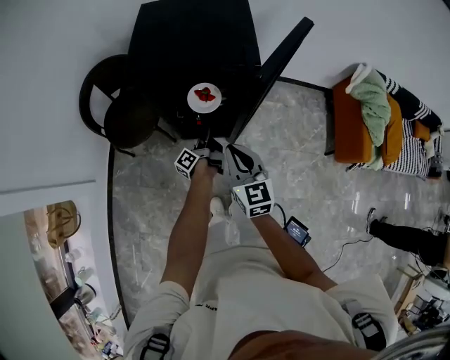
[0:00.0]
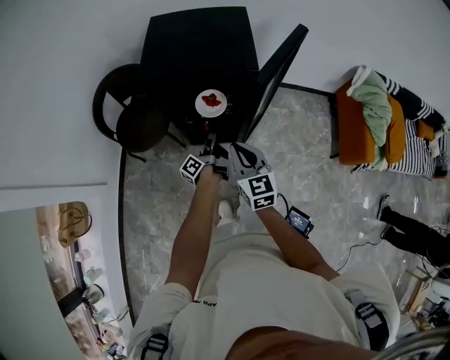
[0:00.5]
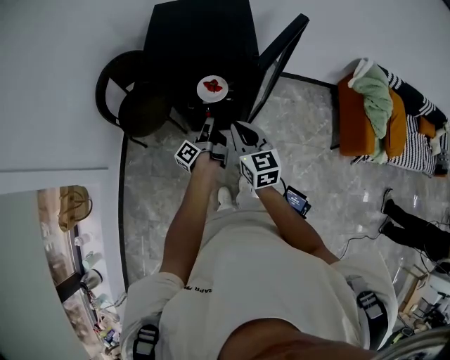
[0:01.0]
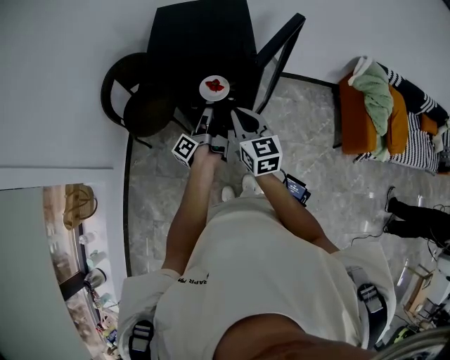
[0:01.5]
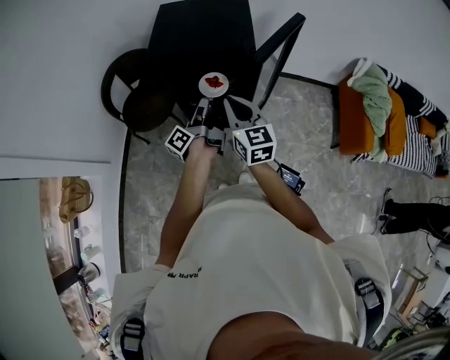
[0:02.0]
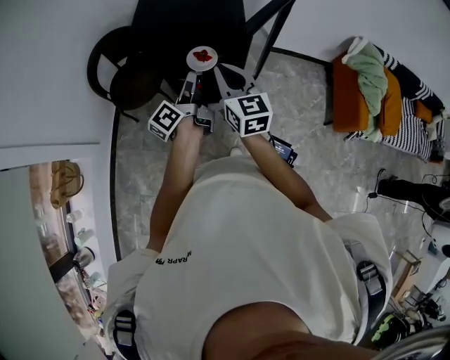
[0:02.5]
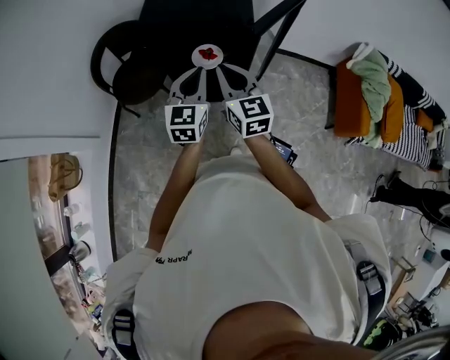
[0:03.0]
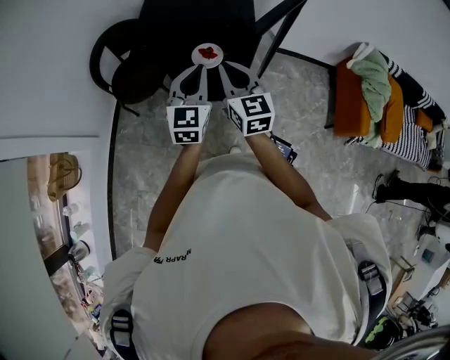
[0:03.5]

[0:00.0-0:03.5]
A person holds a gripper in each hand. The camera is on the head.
0:00.0 to 0:02.0: The right gripper travels upward by some 10 cm.

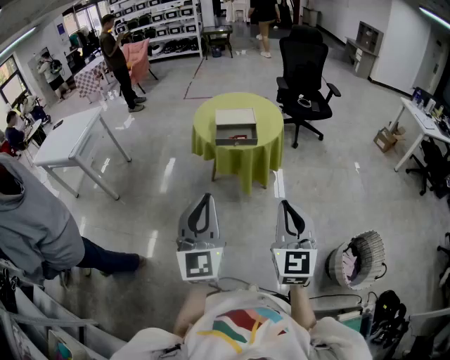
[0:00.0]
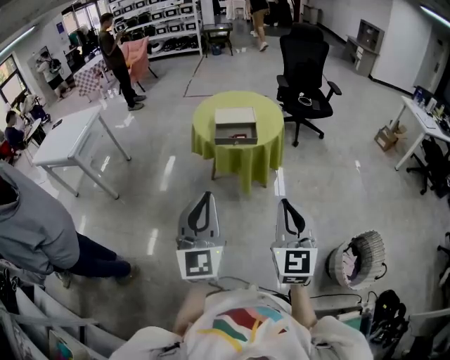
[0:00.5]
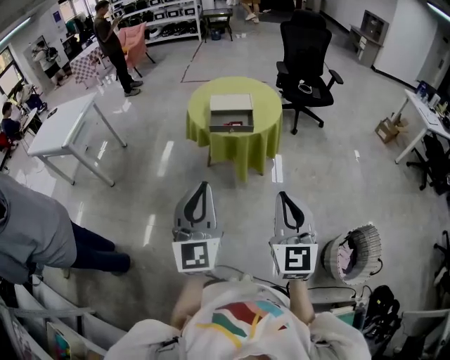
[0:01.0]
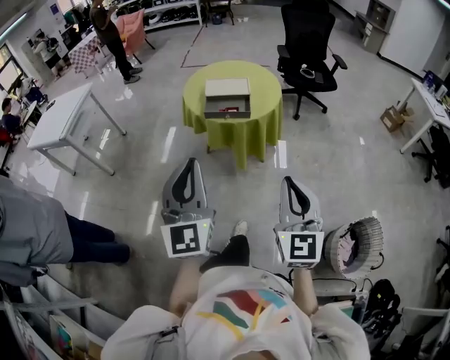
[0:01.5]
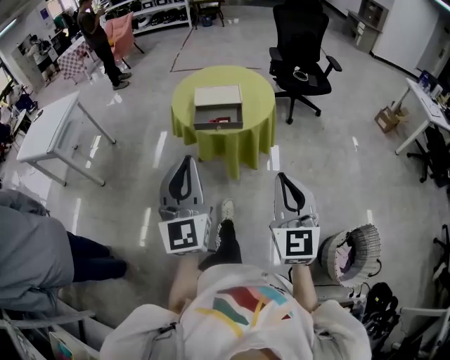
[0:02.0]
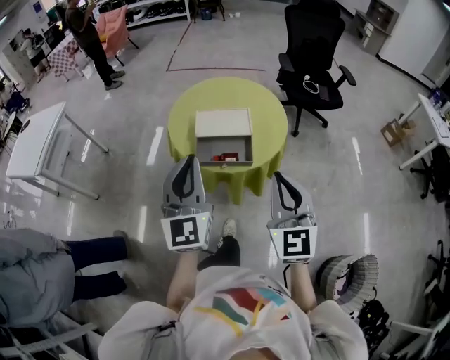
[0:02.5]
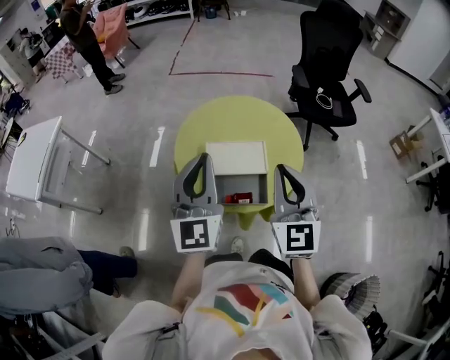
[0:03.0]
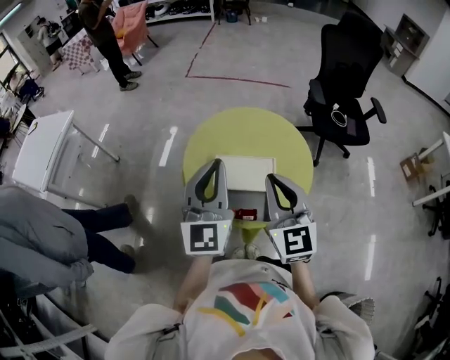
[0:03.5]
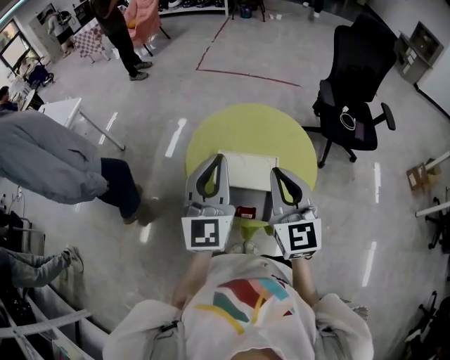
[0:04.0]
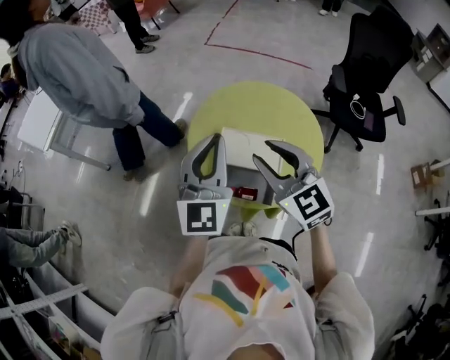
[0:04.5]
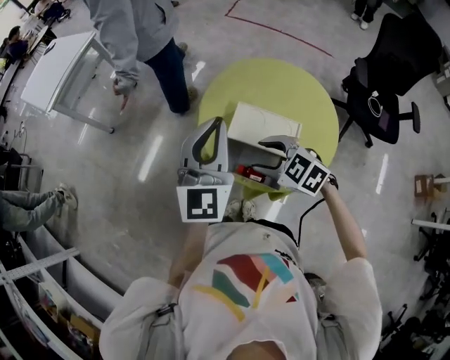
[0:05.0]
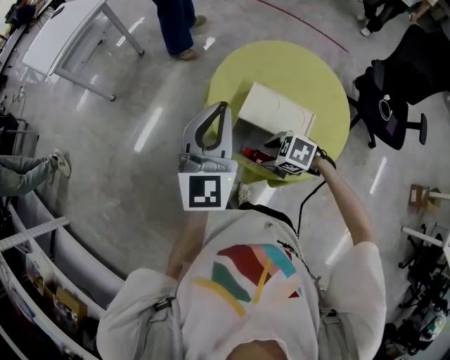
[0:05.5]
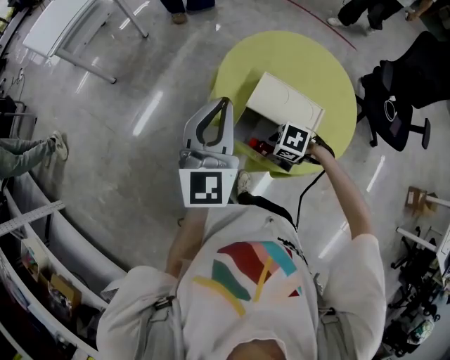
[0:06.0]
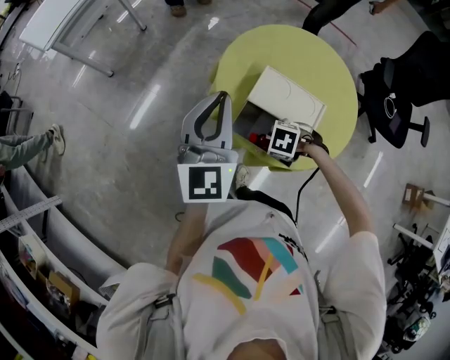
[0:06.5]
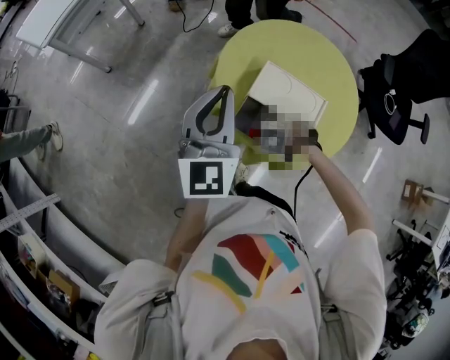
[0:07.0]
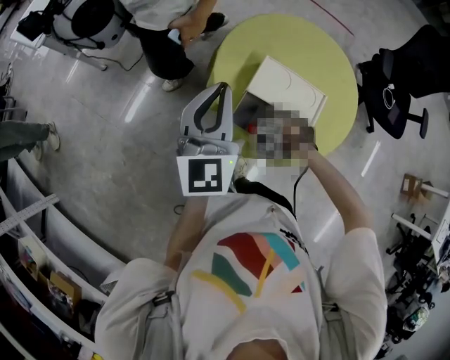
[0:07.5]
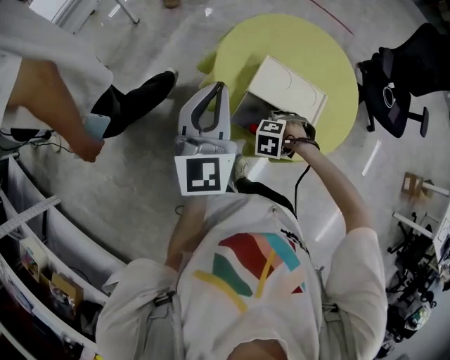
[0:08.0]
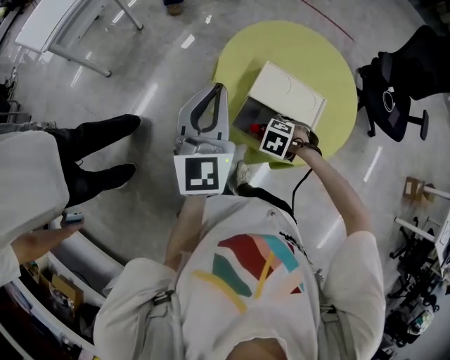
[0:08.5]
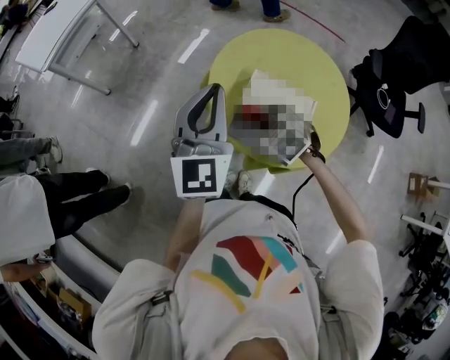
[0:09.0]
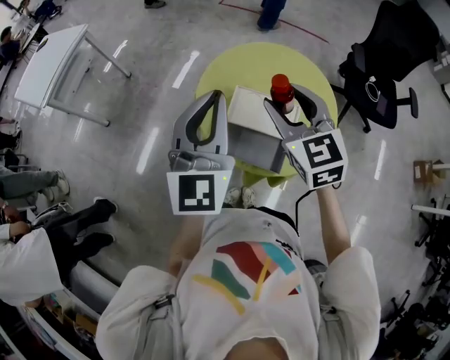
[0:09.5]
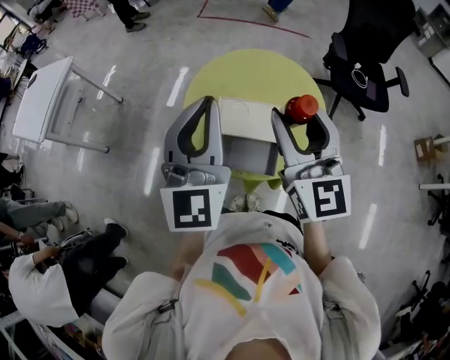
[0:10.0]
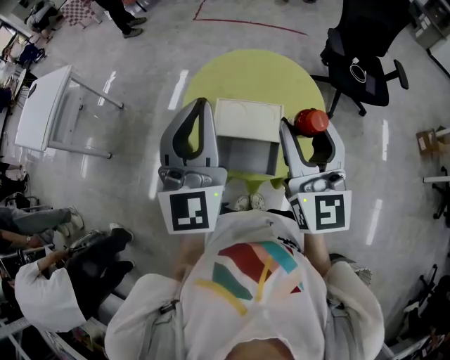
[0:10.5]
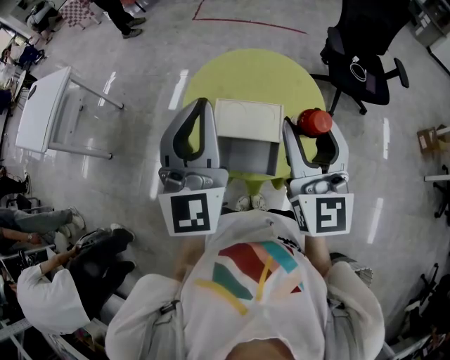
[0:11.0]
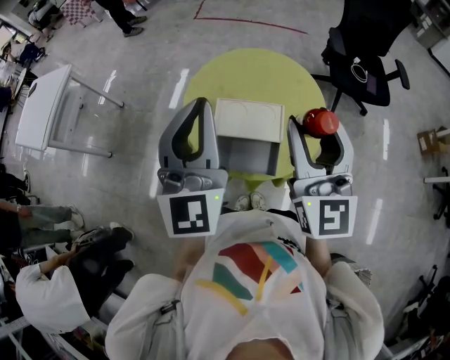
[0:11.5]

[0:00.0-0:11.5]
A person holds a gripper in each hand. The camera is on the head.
0:00.0 to 0:02.0: The right gripper shifts some 15 cm forward and to the right, while the left gripper shifts roughly 15 cm forward.
0:02.0 to 0:04.0: The pair of grippers is taken forward, roughly 50 cm.
0:04.0 to 0:06.0: The right gripper heads downward, covering about 35 cm, angles its fingers downward, by about 60 degrees, and opens up, while the left gripper ends up roughly 15 cm from where it was.
0:06.0 to 0:07.5: The right gripper turns by some 30 degrees.
0:07.5 to 0:09.5: The right gripper goes some 35 cm upward, and tips its fingers upward by approximately 70 degrees, while the left gripper shifts roughly 10 cm upward.
0:09.5 to 0:11.5: The right gripper shifts some 15 cm to the right, upward and backward, and turns by approximately 40 degrees; the left gripper ends up some 5 cm from where it was.

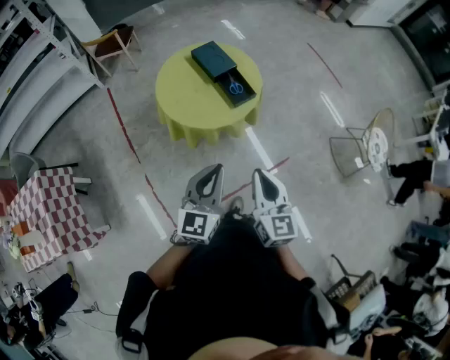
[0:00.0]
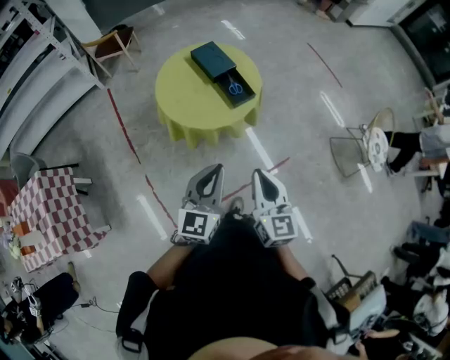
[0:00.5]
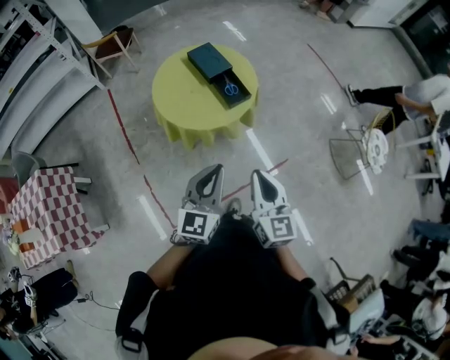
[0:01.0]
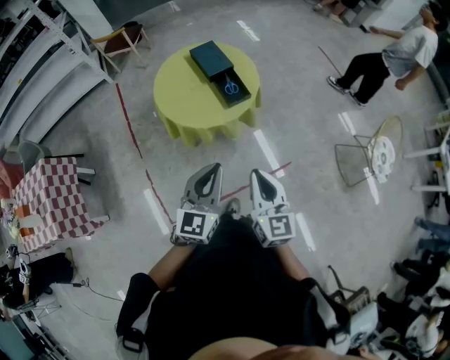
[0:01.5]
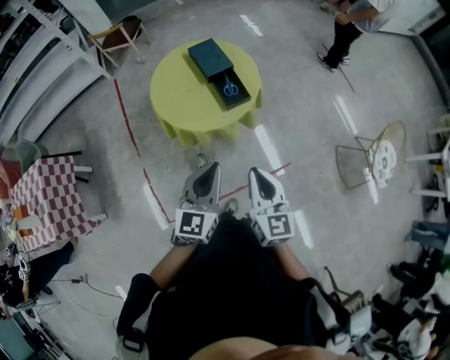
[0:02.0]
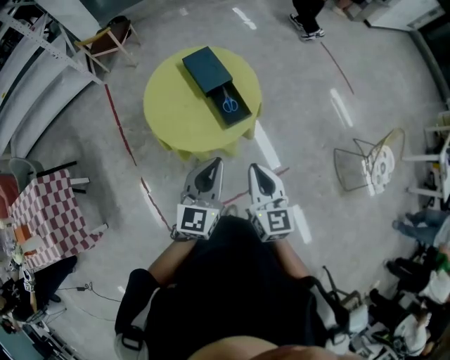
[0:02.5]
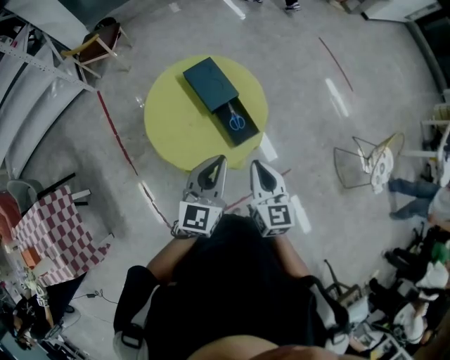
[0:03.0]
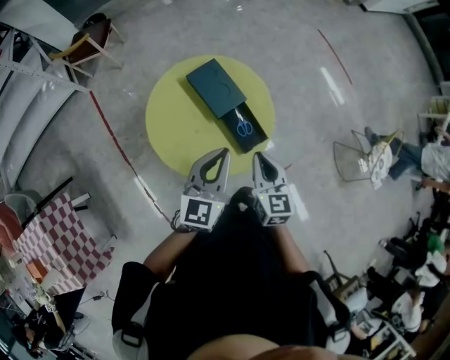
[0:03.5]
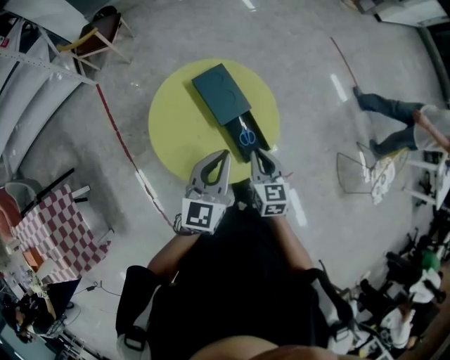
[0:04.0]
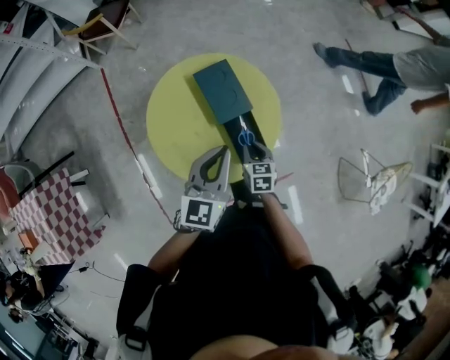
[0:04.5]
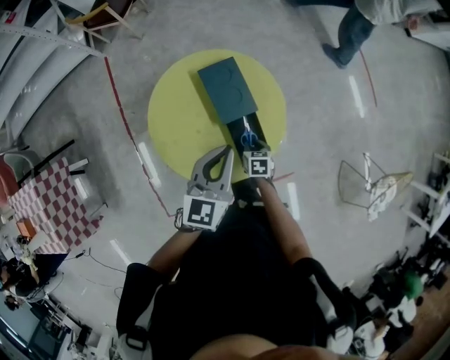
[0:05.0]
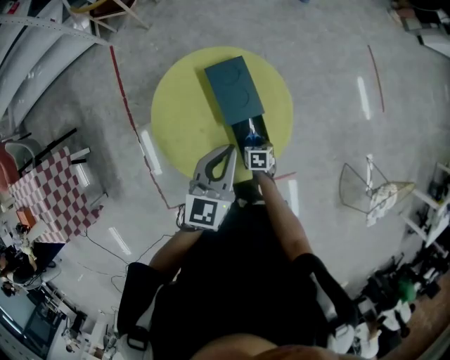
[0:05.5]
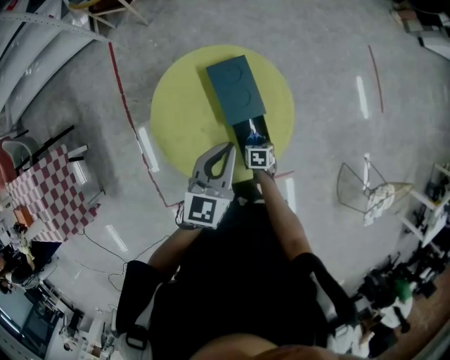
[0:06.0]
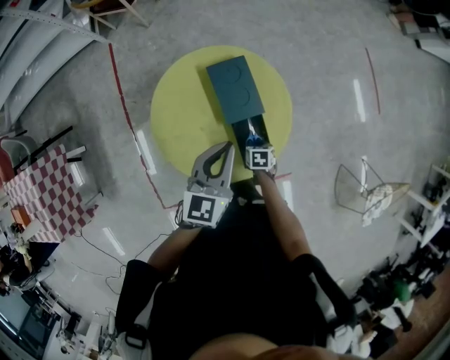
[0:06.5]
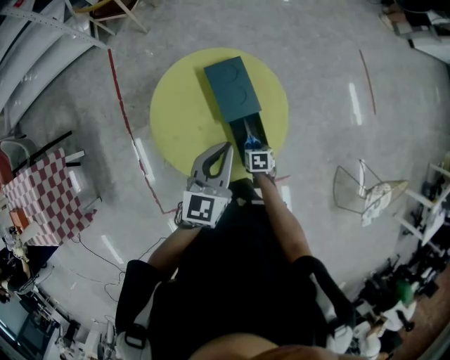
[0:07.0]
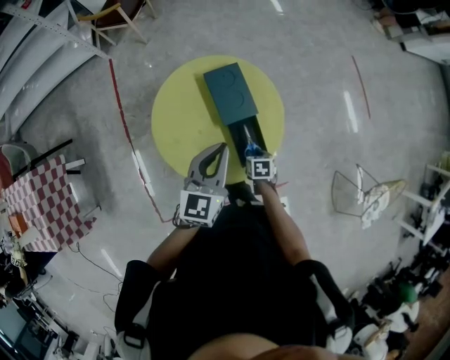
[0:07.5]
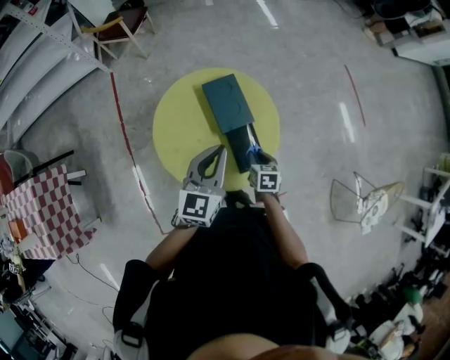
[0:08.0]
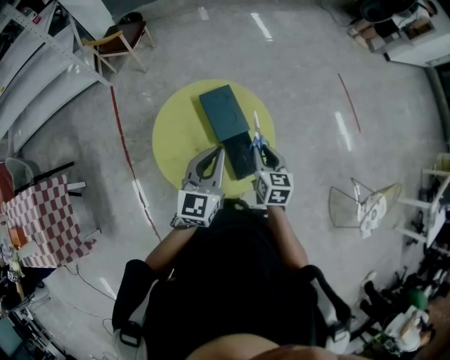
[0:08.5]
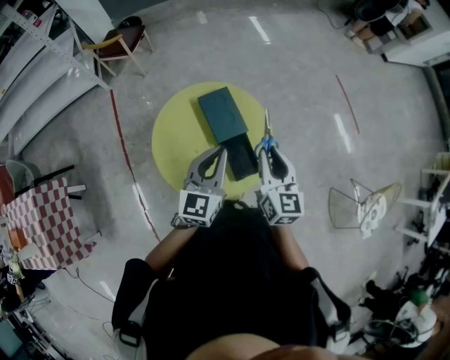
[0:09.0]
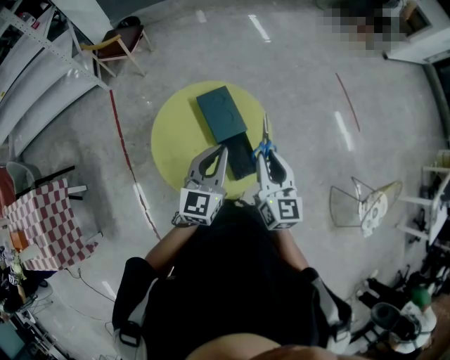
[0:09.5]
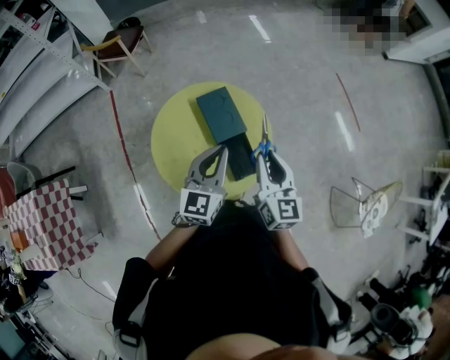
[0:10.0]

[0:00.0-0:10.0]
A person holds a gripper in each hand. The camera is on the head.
0:00.0 to 0:02.0: Both grippers travel together to the right and forward, some 10 cm.
0:02.0 to 0:04.0: Both grippers travel together forward, about 35 cm. The right gripper changes its angle by approximately 20 degrees.
0:04.0 to 0:06.0: The right gripper is displaced downward by approximately 30 cm, tilts its fingers approximately 40 degrees downward, and opens its fingers, while the left gripper changes place by about 10 cm.
0:06.0 to 0:08.0: The right gripper shifts roughly 15 cm upward; the left gripper changes place by roughly 5 cm.
0:08.0 to 0:10.0: The right gripper goes approximately 25 cm upward, and tips its fingers upward by roughly 50 degrees.

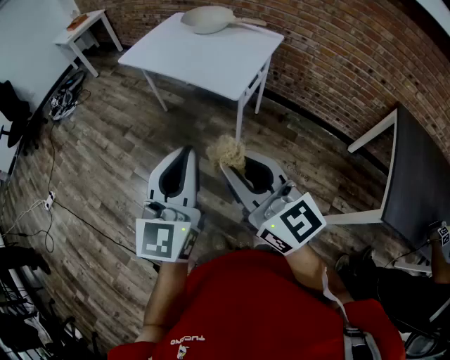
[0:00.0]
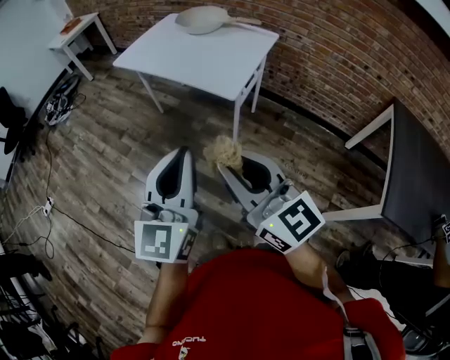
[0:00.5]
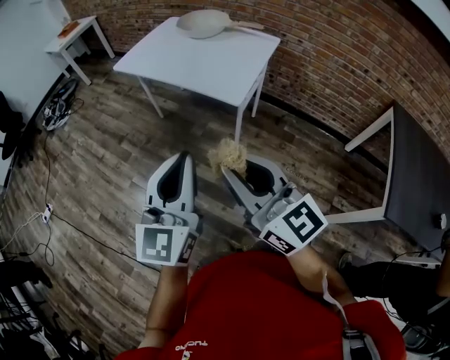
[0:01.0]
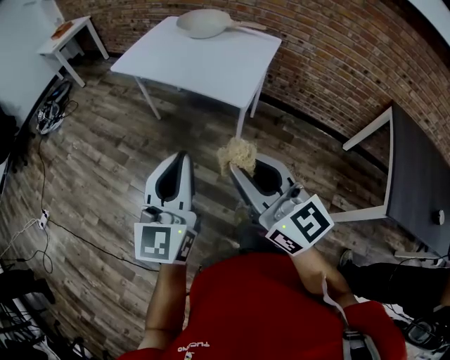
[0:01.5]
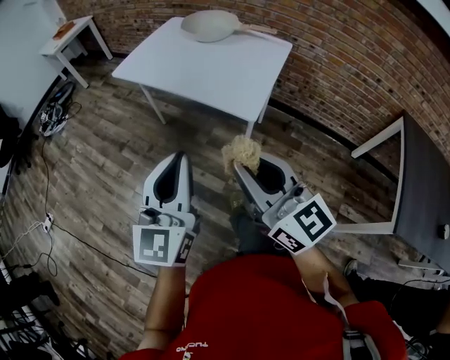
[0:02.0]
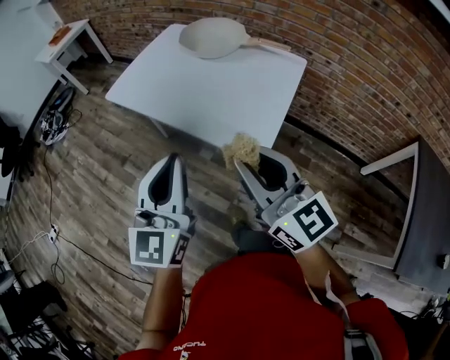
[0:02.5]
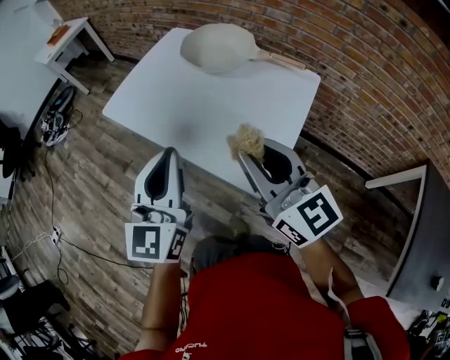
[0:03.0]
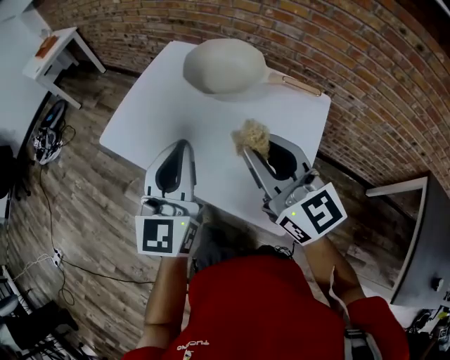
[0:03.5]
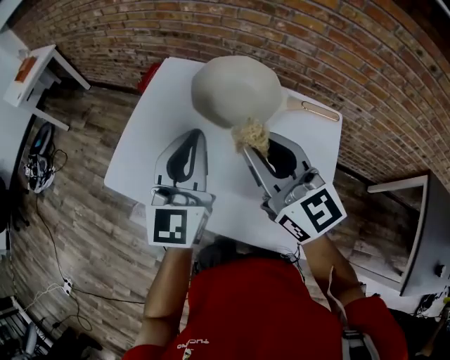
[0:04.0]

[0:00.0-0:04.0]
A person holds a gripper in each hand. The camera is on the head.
0:00.0 to 0:02.0: The right gripper travels forward by some 15 cm. The left gripper heads forward and to the left, covering roughly 15 cm.
0:02.0 to 0:04.0: The two grippers travel together, forward, roughly 60 cm.
